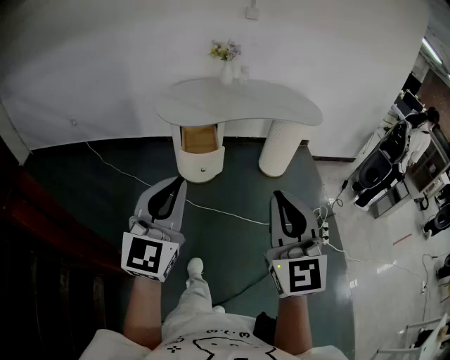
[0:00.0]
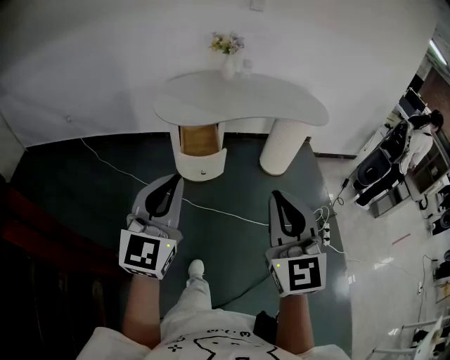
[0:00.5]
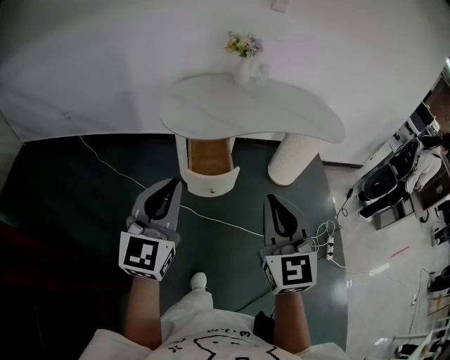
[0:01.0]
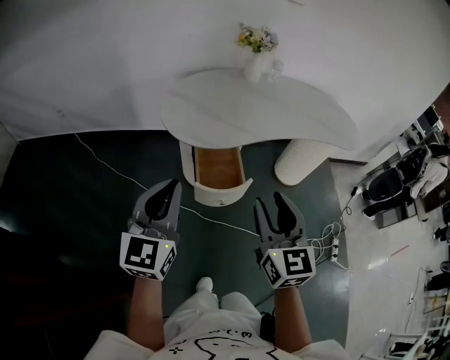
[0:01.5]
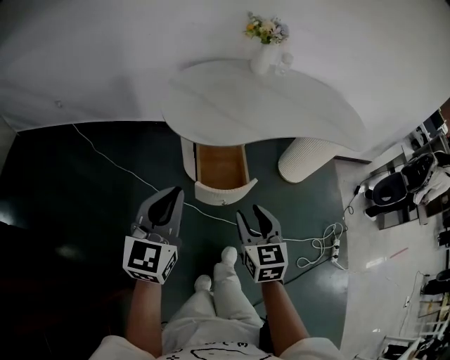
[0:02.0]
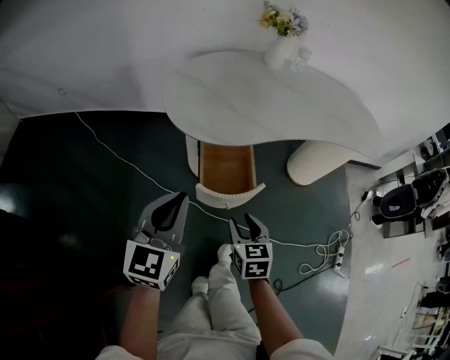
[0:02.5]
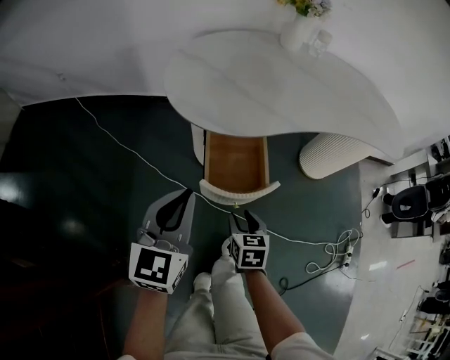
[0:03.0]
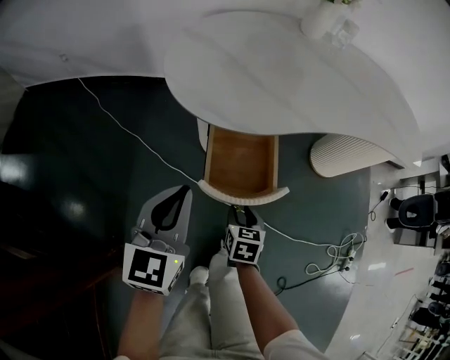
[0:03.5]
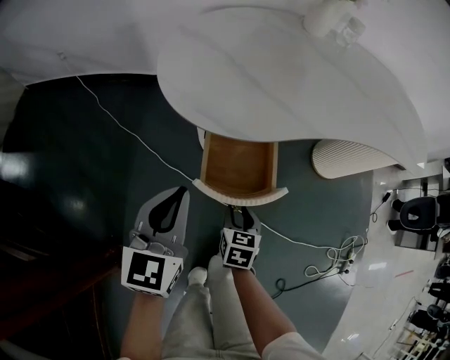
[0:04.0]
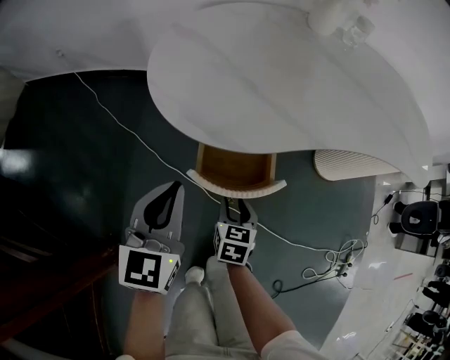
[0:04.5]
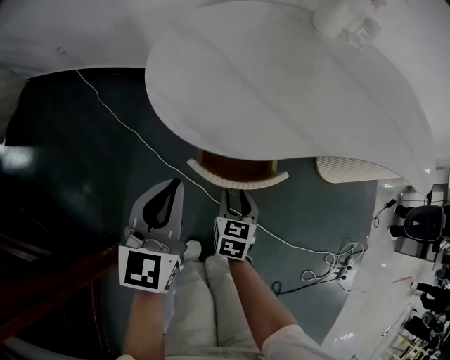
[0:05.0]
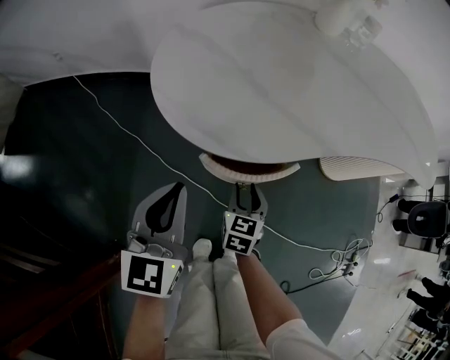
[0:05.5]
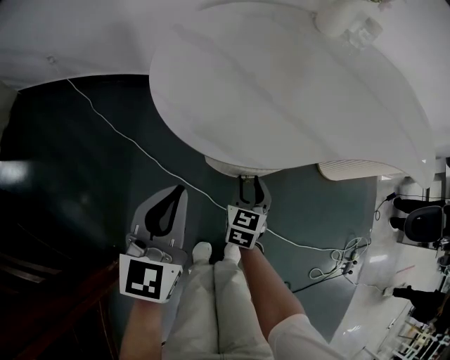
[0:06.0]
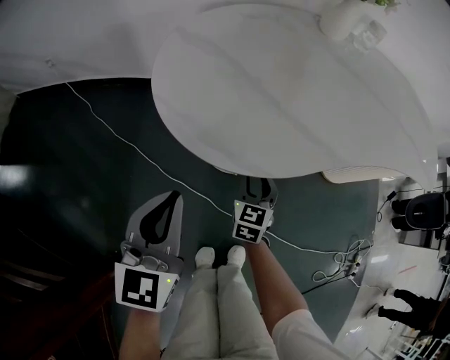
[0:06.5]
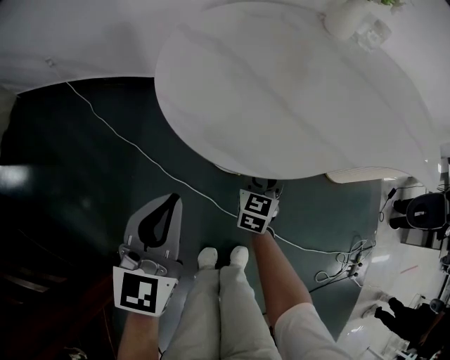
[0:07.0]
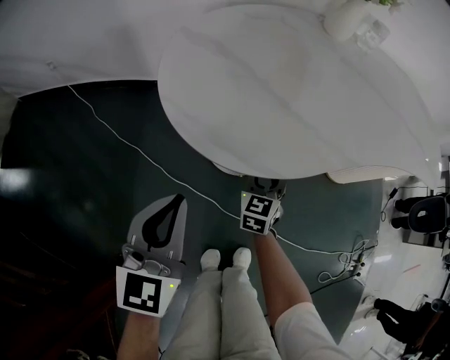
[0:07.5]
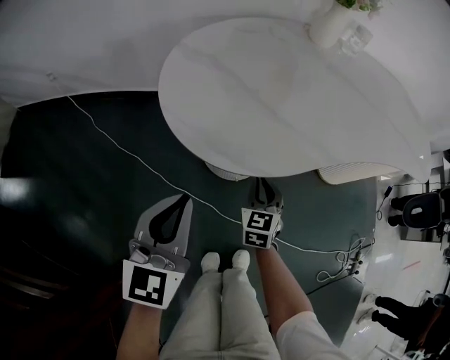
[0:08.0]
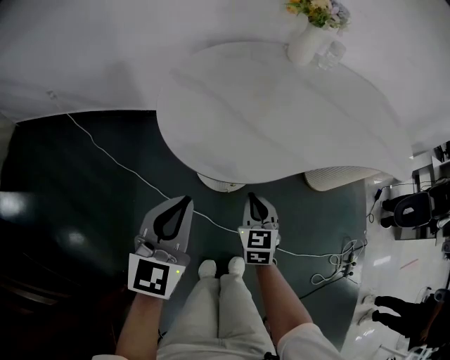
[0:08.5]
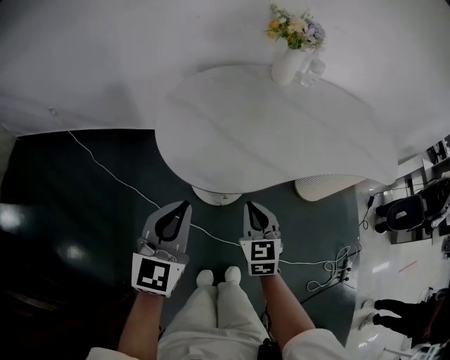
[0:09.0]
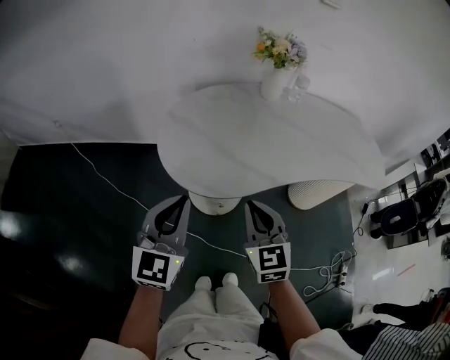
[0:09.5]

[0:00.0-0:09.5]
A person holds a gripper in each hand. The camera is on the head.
0:00.0 to 0:02.0: Both grippers are carried forward and to the left, about 40 cm. The right gripper heads downward, covering about 25 cm, points its fingers about 30 degrees further downward, and opens up.
0:02.0 to 0:04.0: Both grippers travel together downward and forward, roughly 30 cm. The right gripper turns by some 30 degrees.
0:04.0 to 0:05.5: The left gripper is displaced forward by approximately 5 cm. Meanwhile the right gripper heads forward, covering about 10 cm.
0:05.5 to 0:07.5: The right gripper travels forward by about 10 cm.
0:07.5 to 0:09.5: The right gripper goes some 35 cm upward and backward, changes its angle by about 20 degrees, and closes its fingers. The left gripper goes some 20 cm upward.

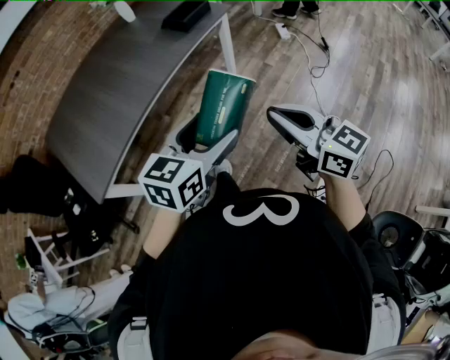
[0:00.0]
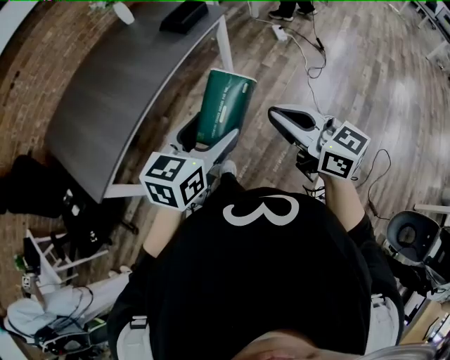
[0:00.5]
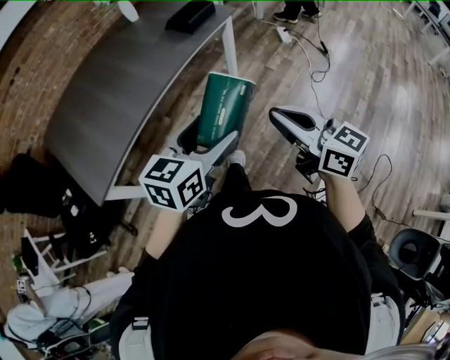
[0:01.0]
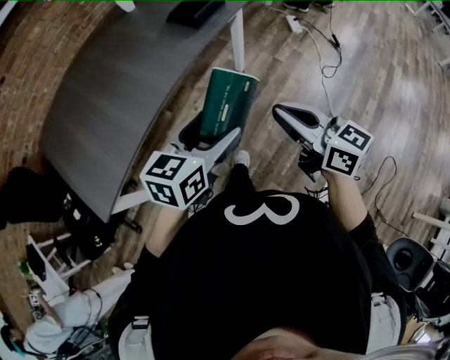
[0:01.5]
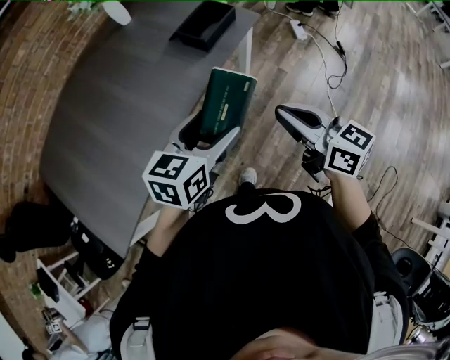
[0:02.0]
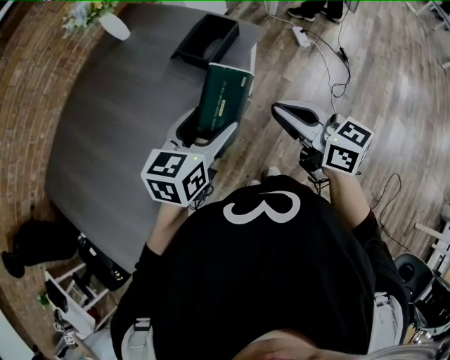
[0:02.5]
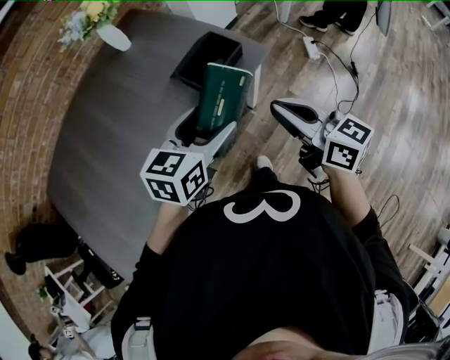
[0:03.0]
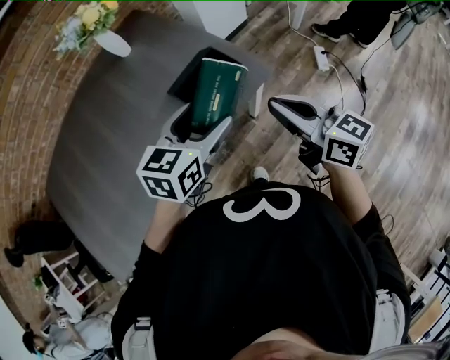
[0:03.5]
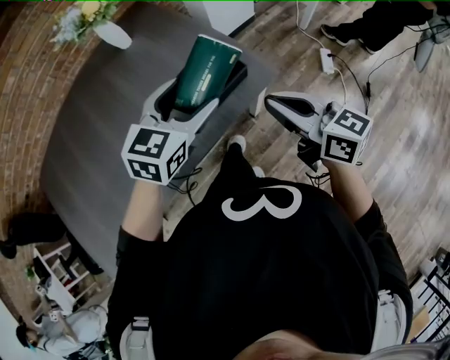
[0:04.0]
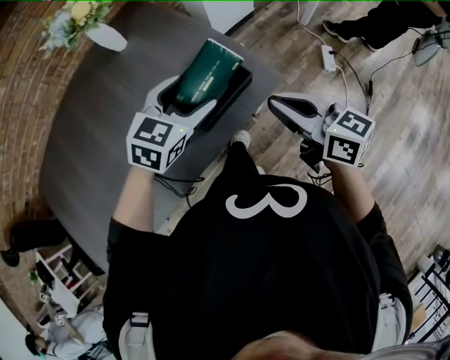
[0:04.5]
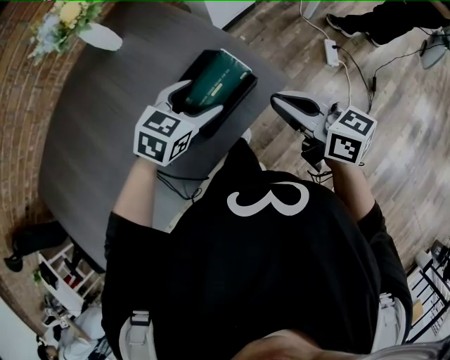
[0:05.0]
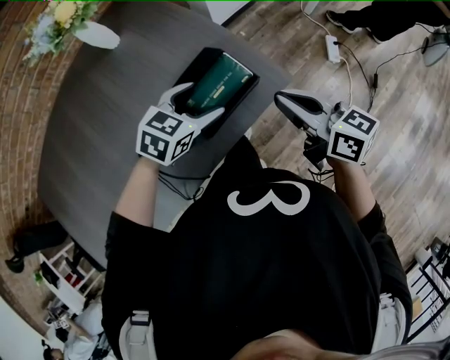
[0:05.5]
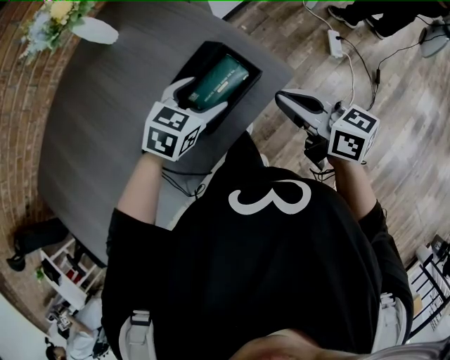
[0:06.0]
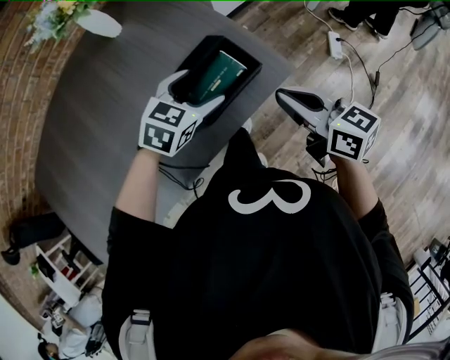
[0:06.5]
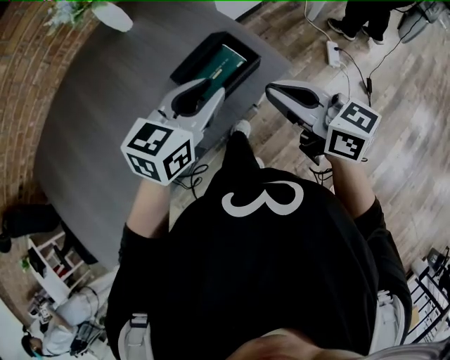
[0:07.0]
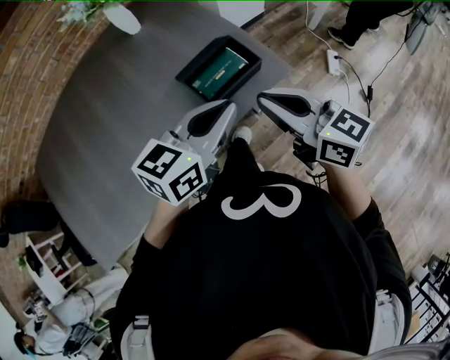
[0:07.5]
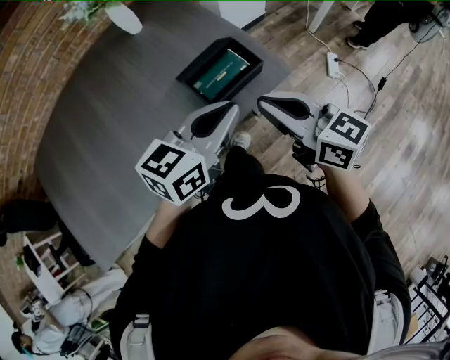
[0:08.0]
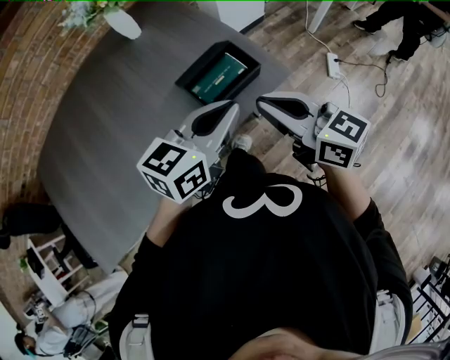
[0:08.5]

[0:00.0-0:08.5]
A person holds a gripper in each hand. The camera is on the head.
0:00.0 to 0:02.0: Both grippers travel together forward, approximately 30 cm.
0:02.0 to 0:04.0: Both grippers travel together forward, roughly 35 cm. The left gripper rotates approximately 20 degrees.
0:04.0 to 0:06.5: The right gripper moves downward and forward, approximately 10 cm; the left gripper heads downward and forward, covering about 15 cm.
0:06.5 to 0:08.5: The left gripper travels upward and backward by approximately 20 cm, rotates about 30 degrees, and closes its fingers. Meanwhile the right gripper shifts about 10 cm upward, backward and to the left.

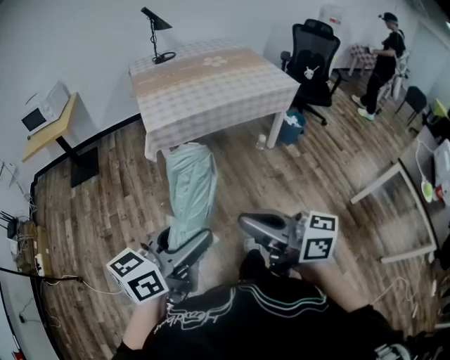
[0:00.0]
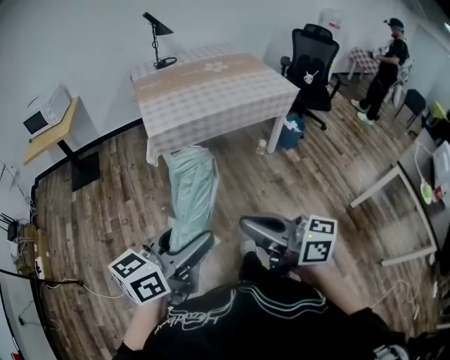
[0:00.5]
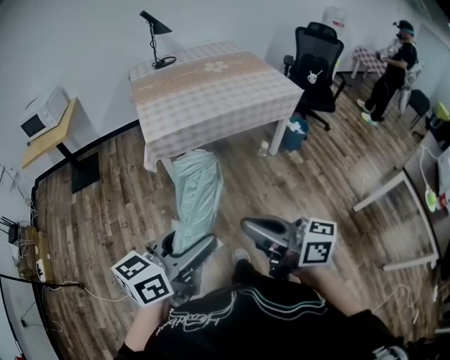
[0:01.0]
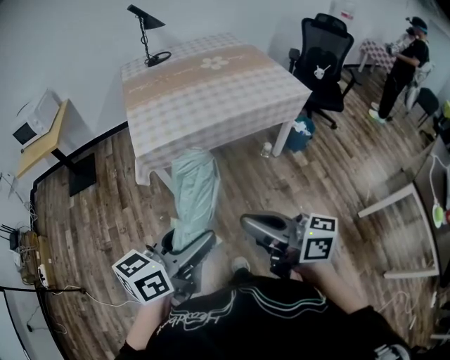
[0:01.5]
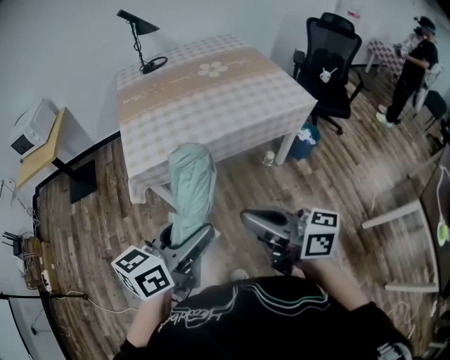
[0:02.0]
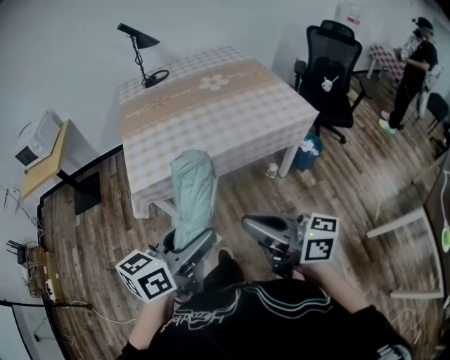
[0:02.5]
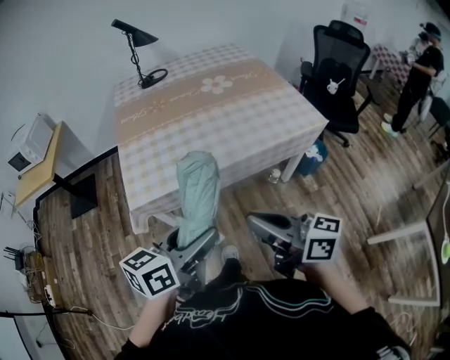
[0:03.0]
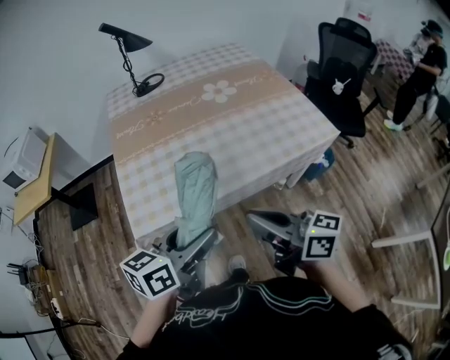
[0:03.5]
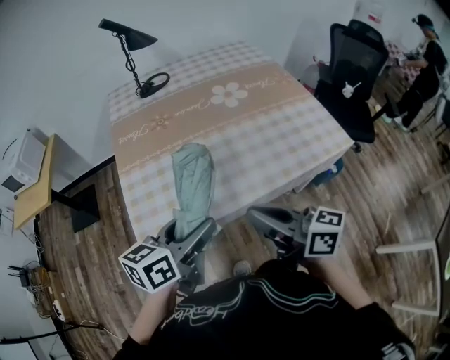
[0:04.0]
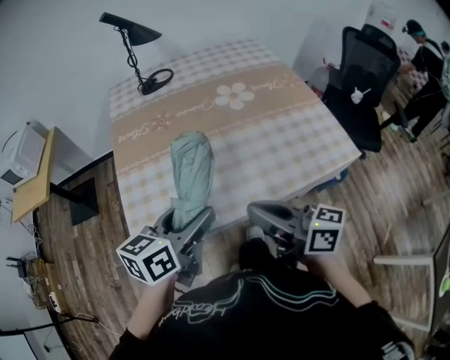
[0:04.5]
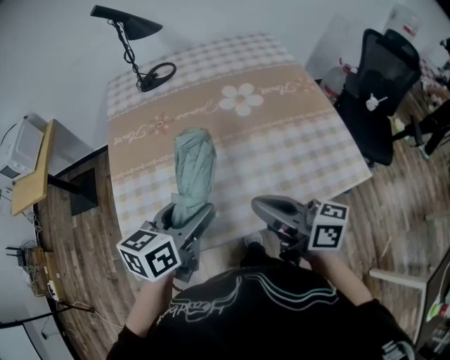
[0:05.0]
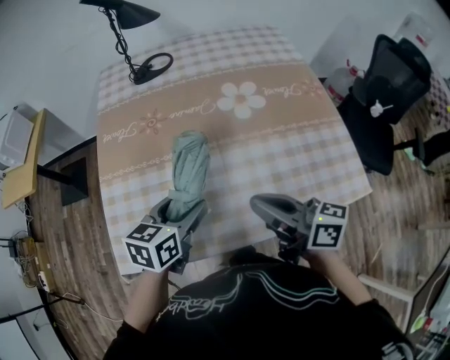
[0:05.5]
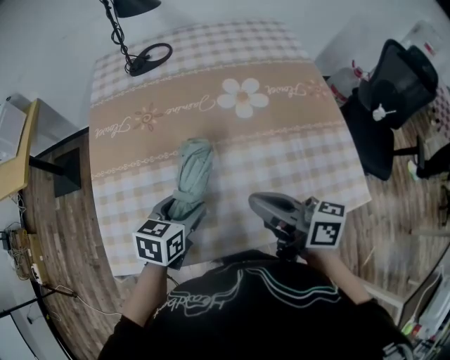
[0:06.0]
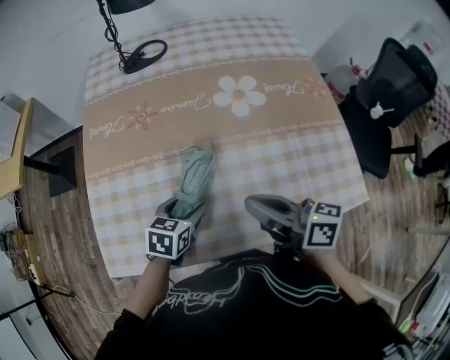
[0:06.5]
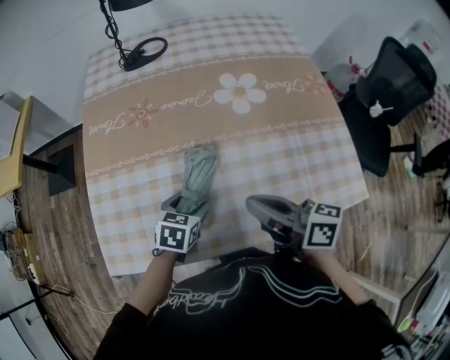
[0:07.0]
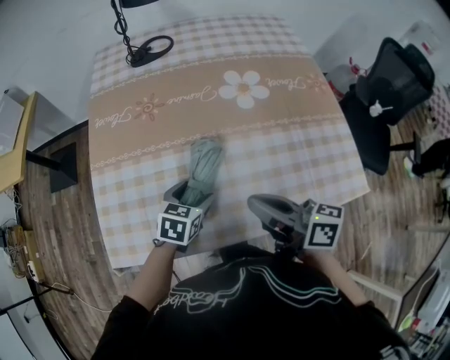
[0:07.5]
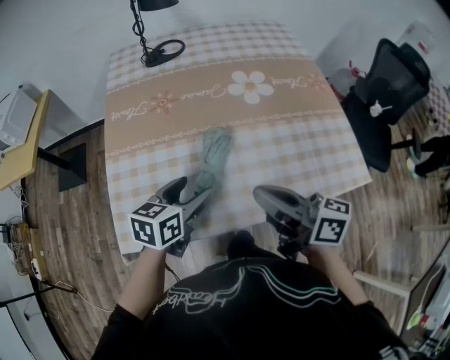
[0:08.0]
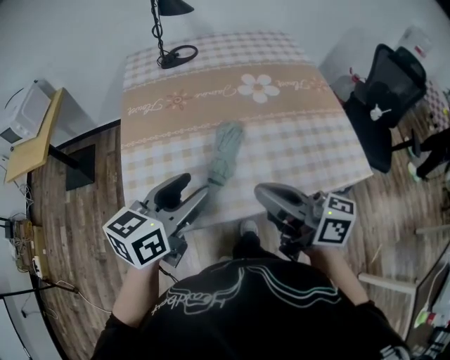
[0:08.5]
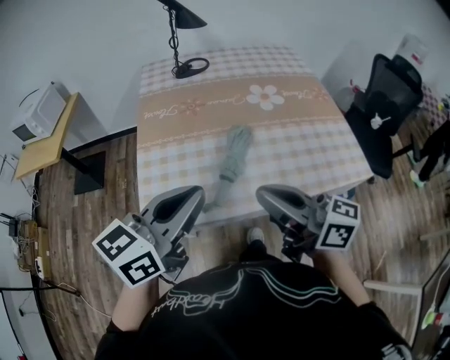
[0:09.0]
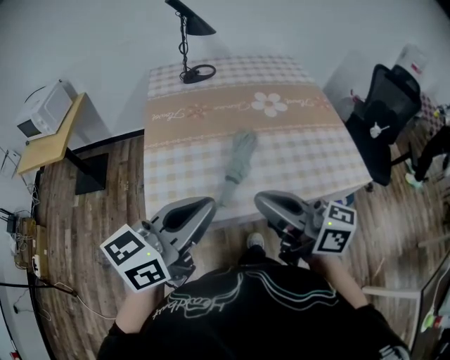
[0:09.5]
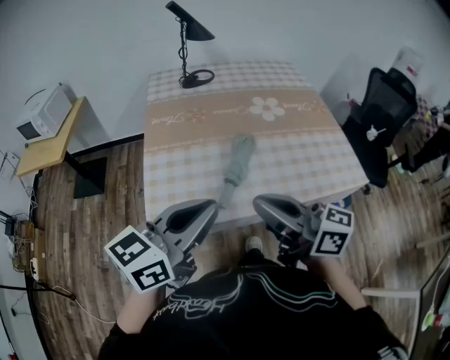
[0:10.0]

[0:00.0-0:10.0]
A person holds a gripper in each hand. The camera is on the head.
0:00.0 to 0:02.0: The grippers both shift forward and to the right by roughly 30 cm.
0:02.0 to 0:04.0: Both grippers move forward, roughly 35 cm.
0:04.0 to 0:06.0: The left gripper moves forward and downward, about 25 cm, and turns by roughly 30 degrees; the right gripper moves forward, some 25 cm.
0:06.0 to 0:08.0: The right gripper moves backward, about 5 cm, while the left gripper moves about 5 cm.
0:08.0 to 0:10.0: The right gripper moves backward, to the left and upward, roughly 20 cm. Meanwhile the left gripper travels upward and backward by roughly 30 cm, rotates approximately 30 degrees, and closes up.
